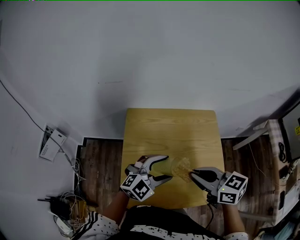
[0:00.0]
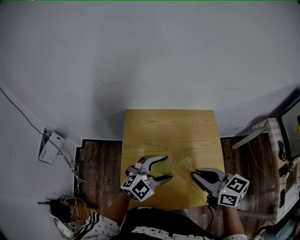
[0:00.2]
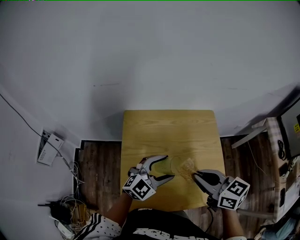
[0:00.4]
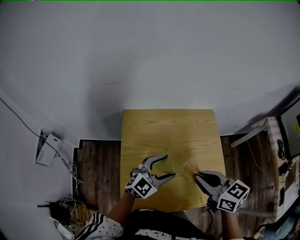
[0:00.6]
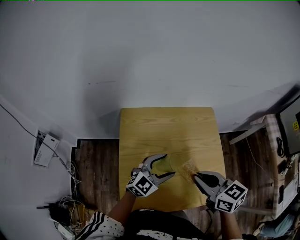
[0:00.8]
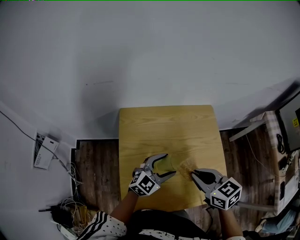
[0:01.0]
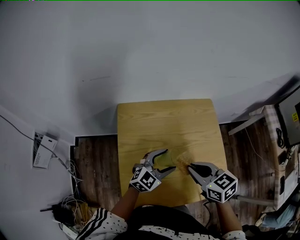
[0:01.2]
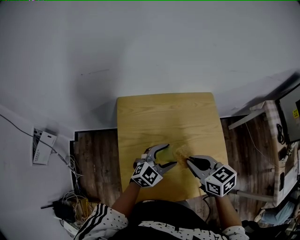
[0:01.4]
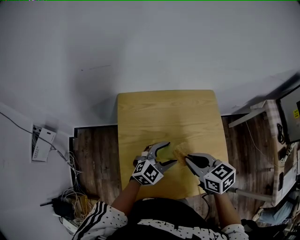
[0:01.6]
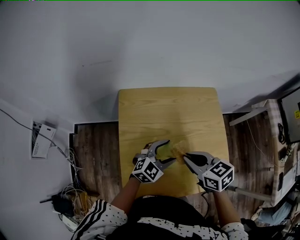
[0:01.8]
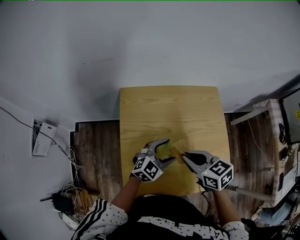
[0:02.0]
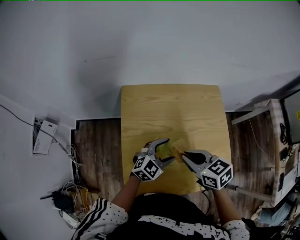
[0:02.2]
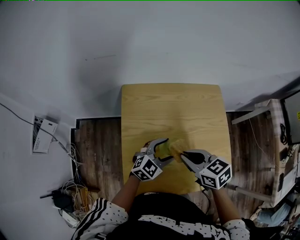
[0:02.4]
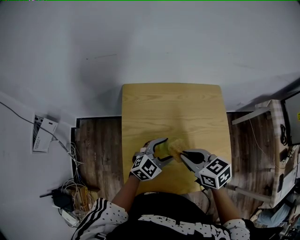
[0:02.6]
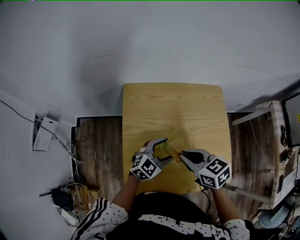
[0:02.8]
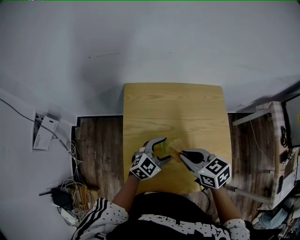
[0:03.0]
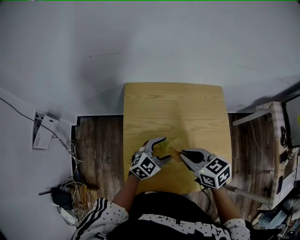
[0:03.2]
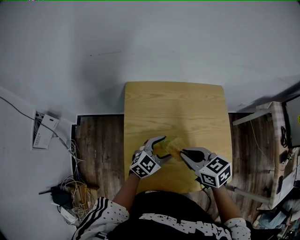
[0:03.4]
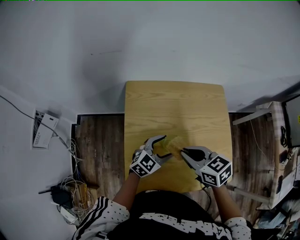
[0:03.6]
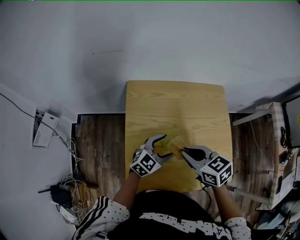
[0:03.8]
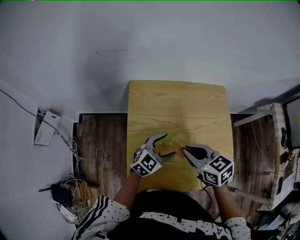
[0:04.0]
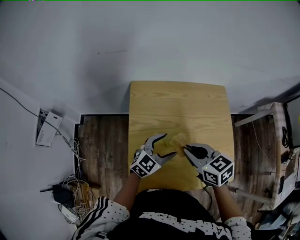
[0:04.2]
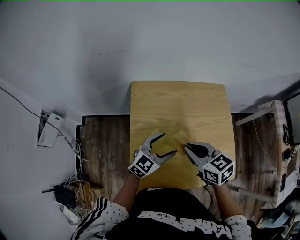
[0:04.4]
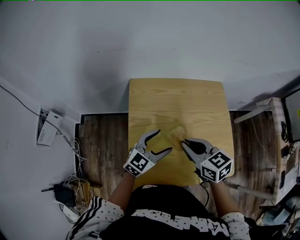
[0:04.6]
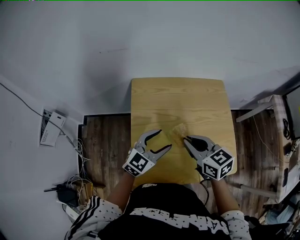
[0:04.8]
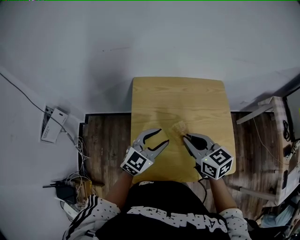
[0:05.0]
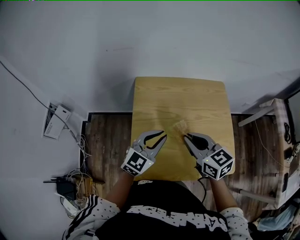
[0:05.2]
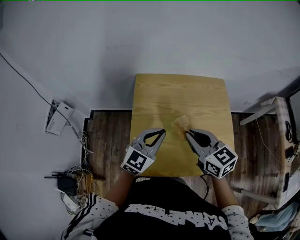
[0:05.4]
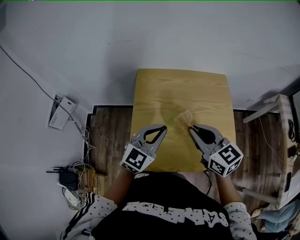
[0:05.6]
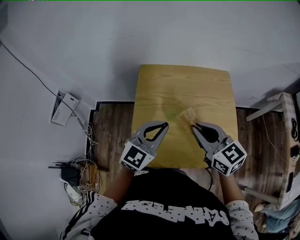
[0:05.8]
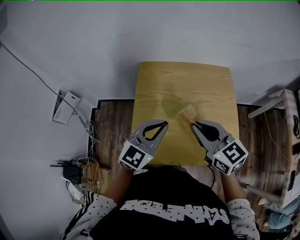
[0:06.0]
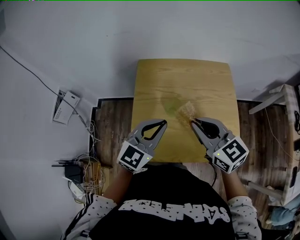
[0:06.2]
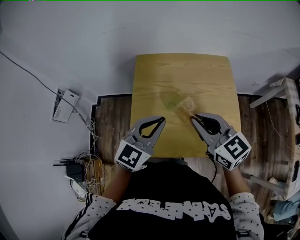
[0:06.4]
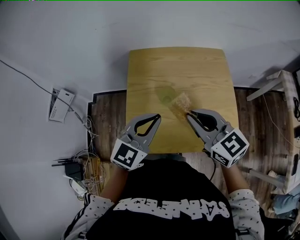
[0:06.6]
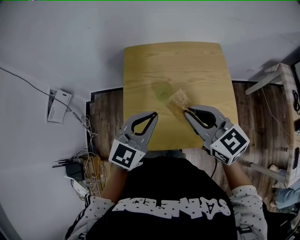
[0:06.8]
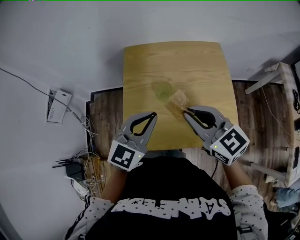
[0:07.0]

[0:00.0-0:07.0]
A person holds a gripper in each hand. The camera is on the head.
0:00.0 to 0:01.4: The grippers both shift downward by roughly 10 cm.
0:01.4 to 0:02.8: The right gripper ends up roughly 5 cm from where it was.
0:02.8 to 0:04.2: The grippers move only a little.
0:04.2 to 0:05.6: The left gripper is displaced upward and backward by roughly 15 cm, and closes its fingers. Meanwhile the right gripper goes approximately 10 cm upward, and changes its angle by approximately 20 degrees.
0:05.6 to 0:07.0: The grippers make only small movements.

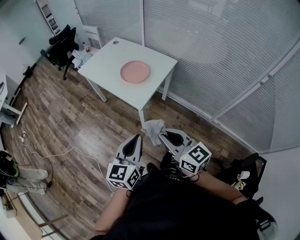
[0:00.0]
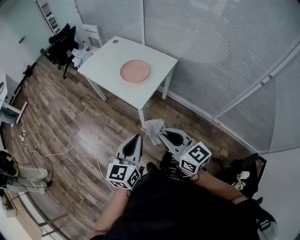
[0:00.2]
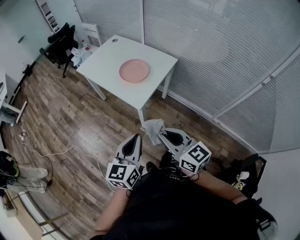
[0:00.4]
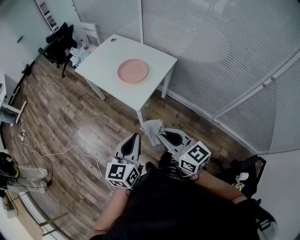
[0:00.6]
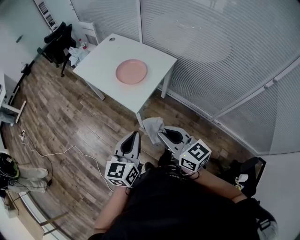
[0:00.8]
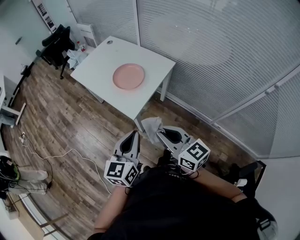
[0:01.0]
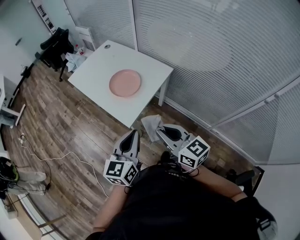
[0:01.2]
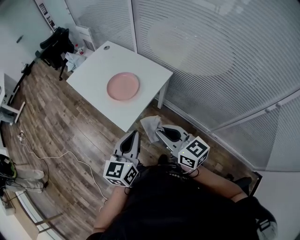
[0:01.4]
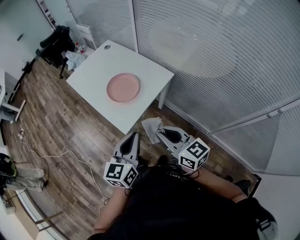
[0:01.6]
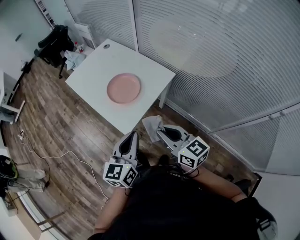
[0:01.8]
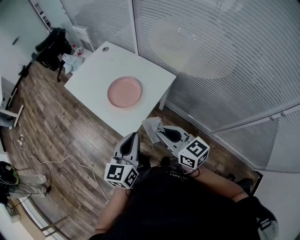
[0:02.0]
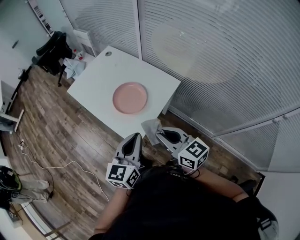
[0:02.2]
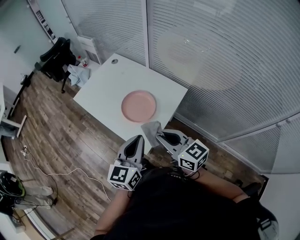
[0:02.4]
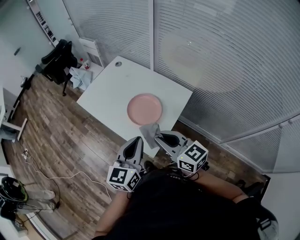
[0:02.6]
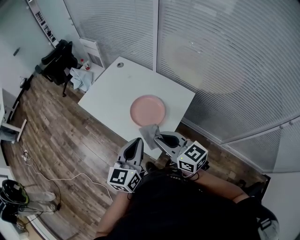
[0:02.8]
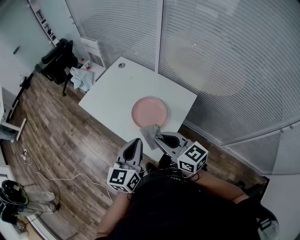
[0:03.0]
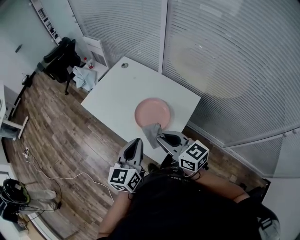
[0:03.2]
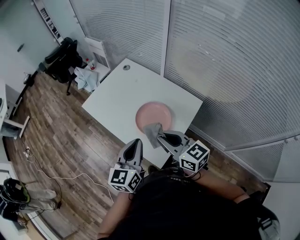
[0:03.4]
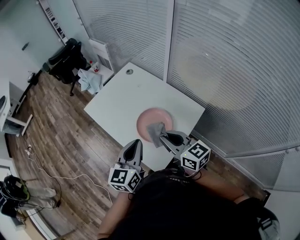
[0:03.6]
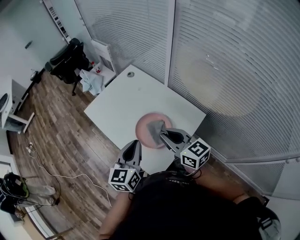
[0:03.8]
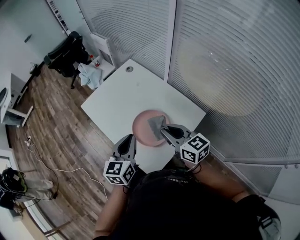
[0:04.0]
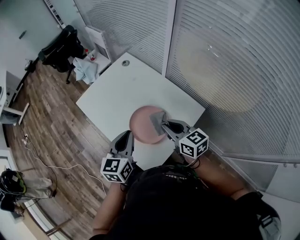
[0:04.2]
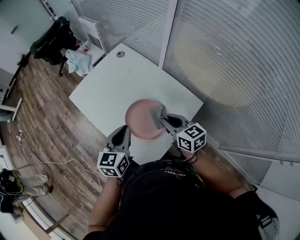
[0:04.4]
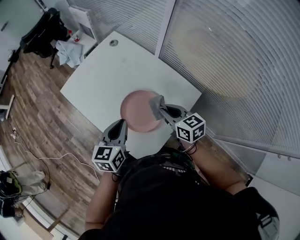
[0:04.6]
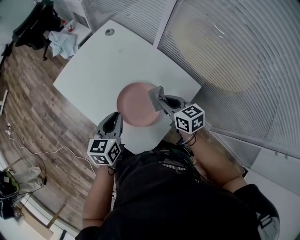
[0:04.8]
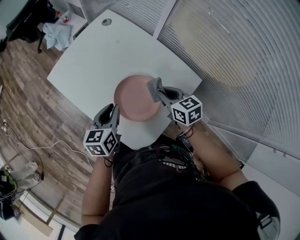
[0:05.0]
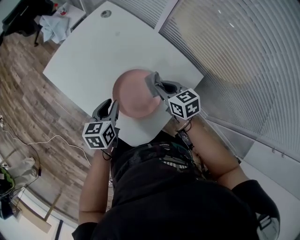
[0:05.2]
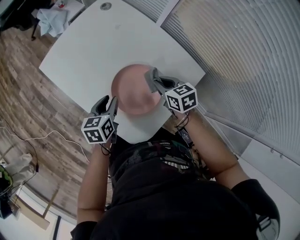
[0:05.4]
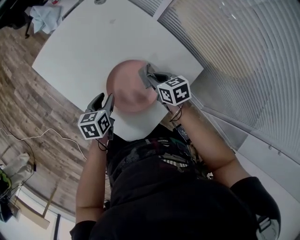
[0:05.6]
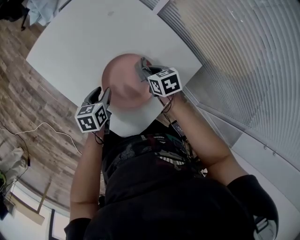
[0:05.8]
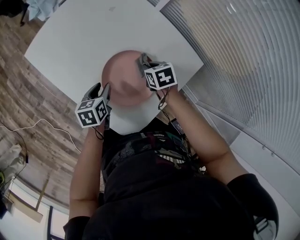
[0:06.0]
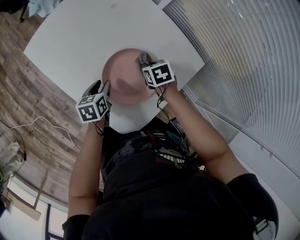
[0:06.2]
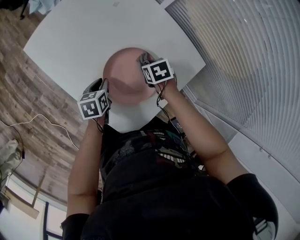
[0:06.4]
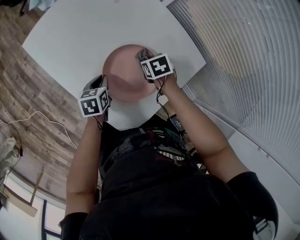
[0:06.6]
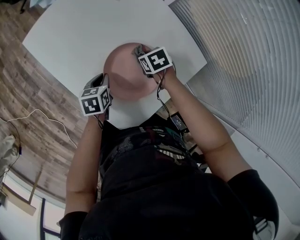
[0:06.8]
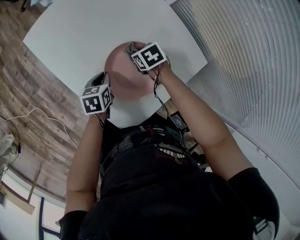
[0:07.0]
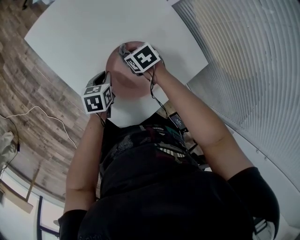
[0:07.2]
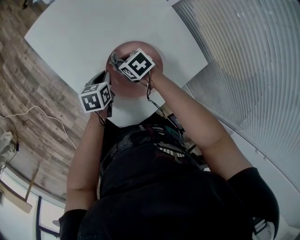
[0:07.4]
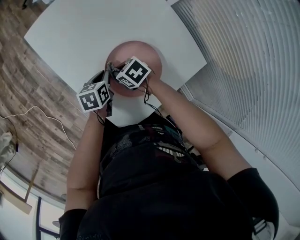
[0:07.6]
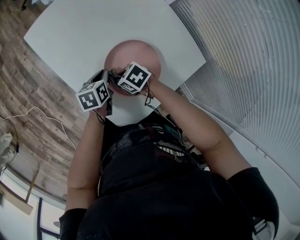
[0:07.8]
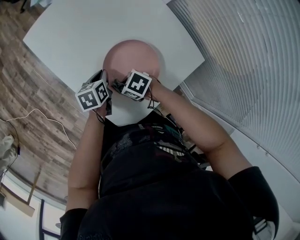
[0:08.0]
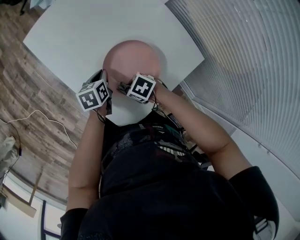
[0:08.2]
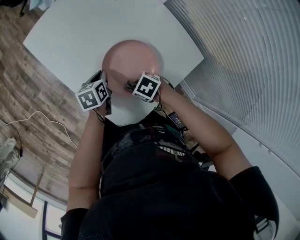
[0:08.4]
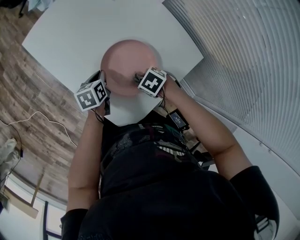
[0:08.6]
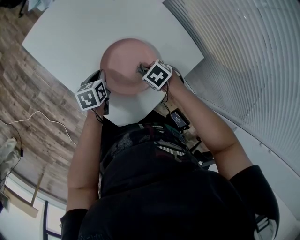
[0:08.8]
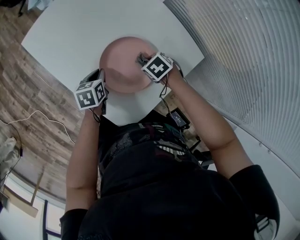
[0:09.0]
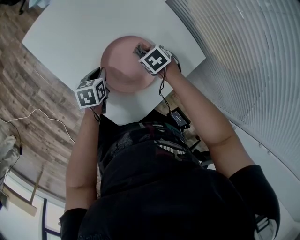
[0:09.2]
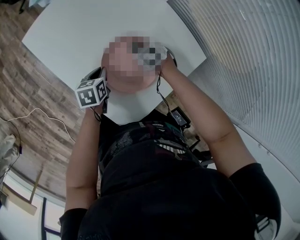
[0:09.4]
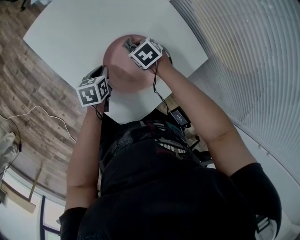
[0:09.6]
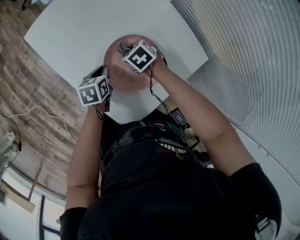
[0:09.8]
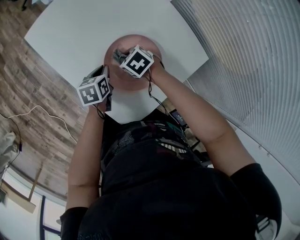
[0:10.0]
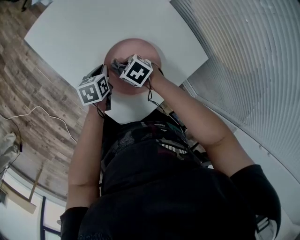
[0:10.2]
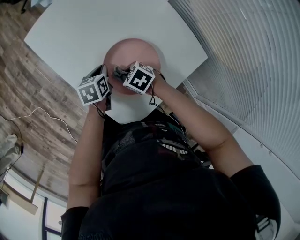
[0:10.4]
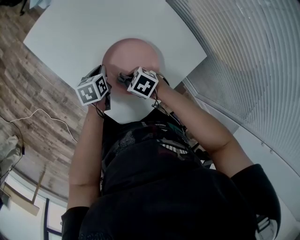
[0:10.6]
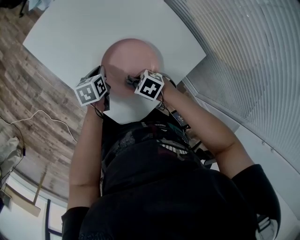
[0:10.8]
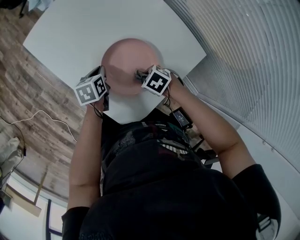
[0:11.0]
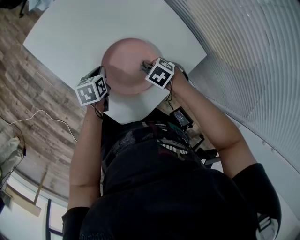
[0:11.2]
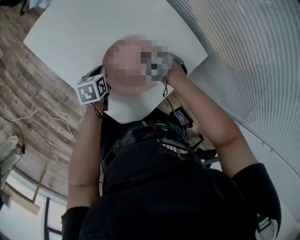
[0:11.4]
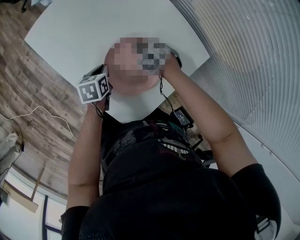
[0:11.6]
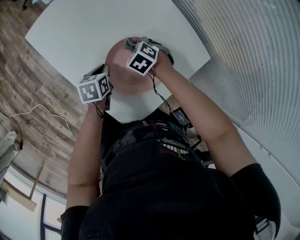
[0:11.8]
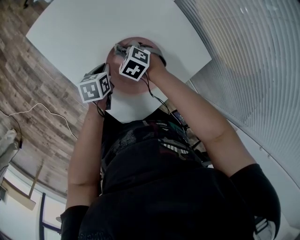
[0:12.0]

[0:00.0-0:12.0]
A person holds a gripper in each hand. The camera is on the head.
0:00.0 to 0:01.6: Both grippers travel together forward and to the right, roughly 25 cm.
0:01.6 to 0:03.0: Both grippers travel together forward and to the left, some 25 cm.
0:03.0 to 0:04.4: The right gripper shifts about 25 cm forward, to the right and downward. The left gripper shifts about 20 cm forward and downward.
0:04.4 to 0:06.0: The two grippers go about 25 cm downward. The left gripper changes its angle by approximately 30 degrees, and opens its fingers; the right gripper tips its fingers downward by about 40 degrees.
0:06.0 to 0:07.6: The right gripper ends up about 15 cm from where it was, and changes its angle by about 40 degrees; the left gripper closes up.
0:07.6 to 0:09.0: The right gripper shifts by about 15 cm, and rotates about 20 degrees.
0:09.0 to 0:10.4: The right gripper ends up some 15 cm from where it was.
0:10.4 to 0:12.0: The right gripper ends up approximately 10 cm from where it was, and rotates some 20 degrees.

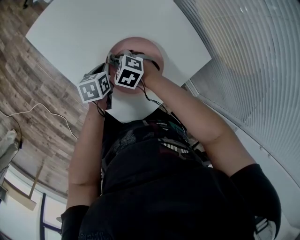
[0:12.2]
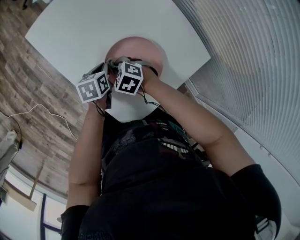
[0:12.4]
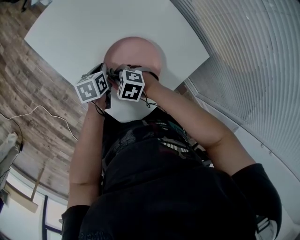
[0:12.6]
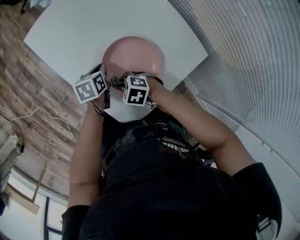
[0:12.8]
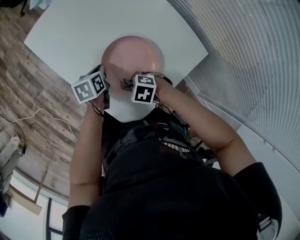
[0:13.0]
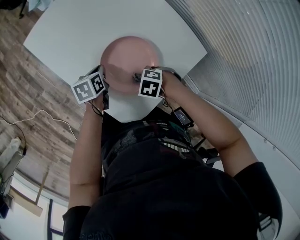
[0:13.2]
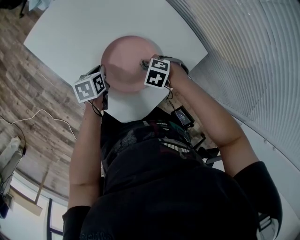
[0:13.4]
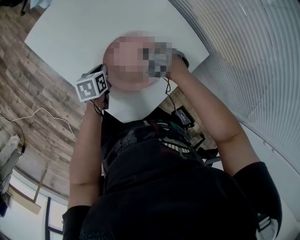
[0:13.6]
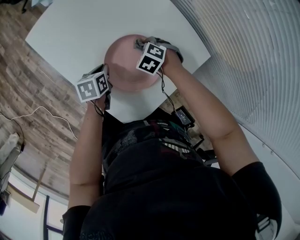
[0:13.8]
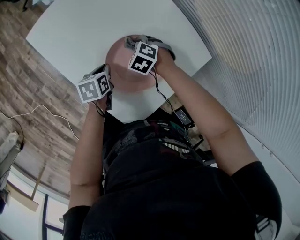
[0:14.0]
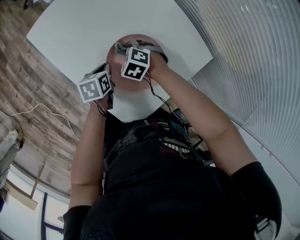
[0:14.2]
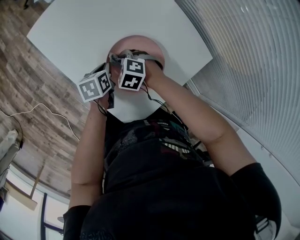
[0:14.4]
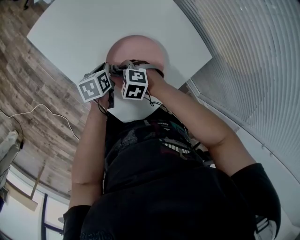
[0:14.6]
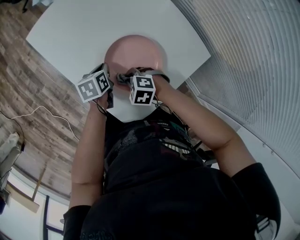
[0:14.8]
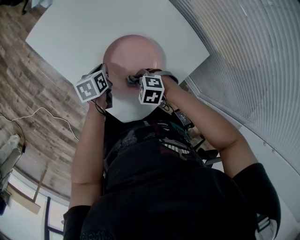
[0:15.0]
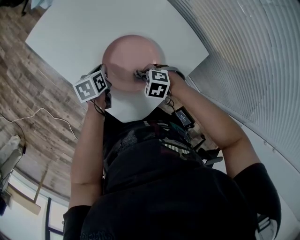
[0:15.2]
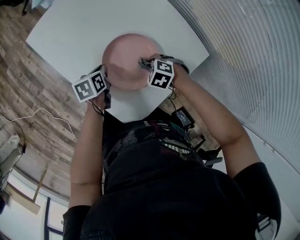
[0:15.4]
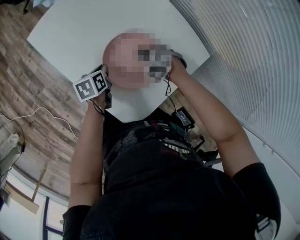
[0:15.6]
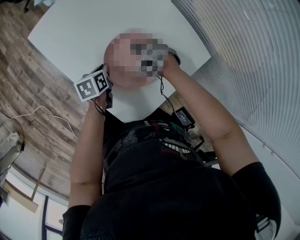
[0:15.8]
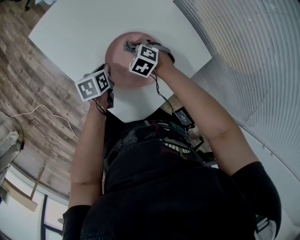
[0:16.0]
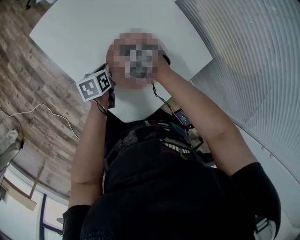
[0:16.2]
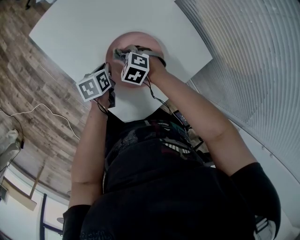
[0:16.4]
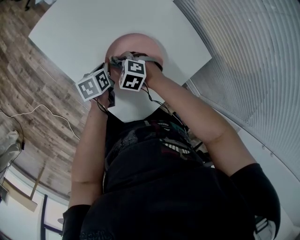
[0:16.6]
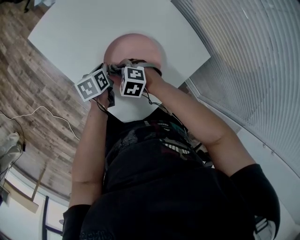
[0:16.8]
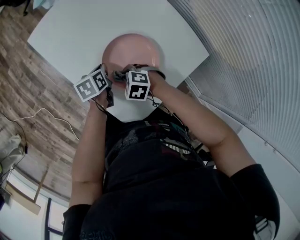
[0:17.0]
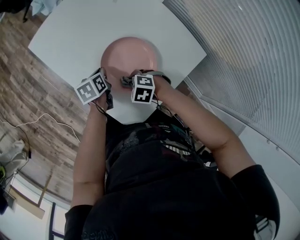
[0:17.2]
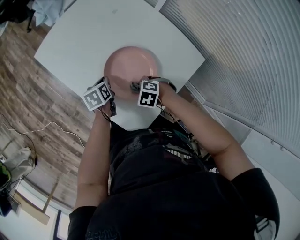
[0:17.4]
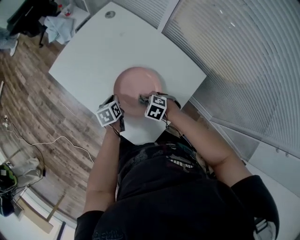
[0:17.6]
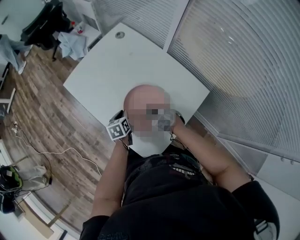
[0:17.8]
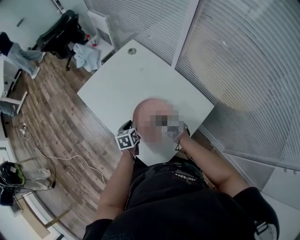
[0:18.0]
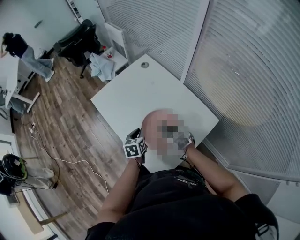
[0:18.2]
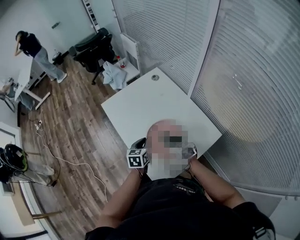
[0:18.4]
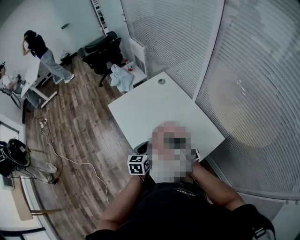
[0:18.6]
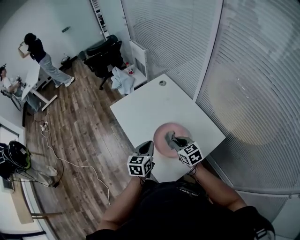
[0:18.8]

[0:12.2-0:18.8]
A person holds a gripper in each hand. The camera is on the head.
0:12.2 to 0:13.8: The right gripper ends up some 15 cm from where it was.
0:15.4 to 0:17.2: The right gripper shifts by roughly 10 cm.
0:17.2 to 0:18.8: The grippers both shift upward by roughly 20 cm. The left gripper turns by roughly 40 degrees; the right gripper tips its fingers upward by roughly 40 degrees.
